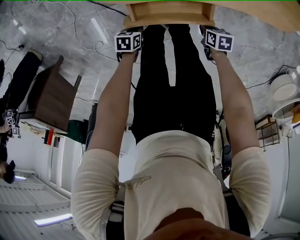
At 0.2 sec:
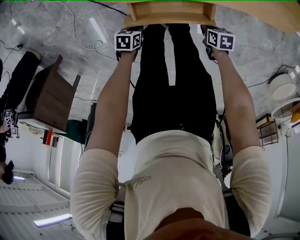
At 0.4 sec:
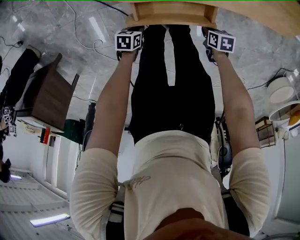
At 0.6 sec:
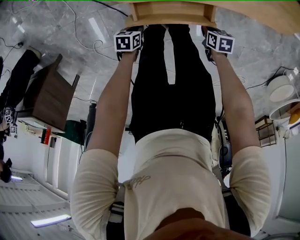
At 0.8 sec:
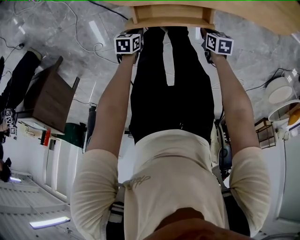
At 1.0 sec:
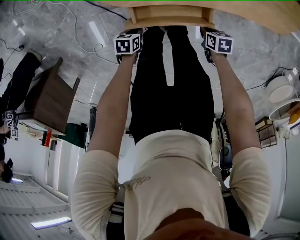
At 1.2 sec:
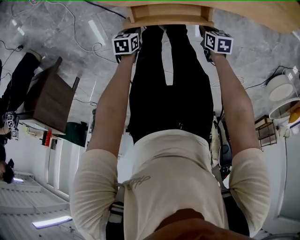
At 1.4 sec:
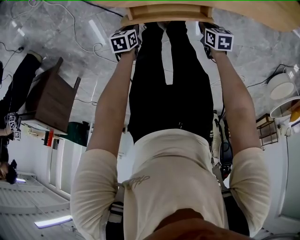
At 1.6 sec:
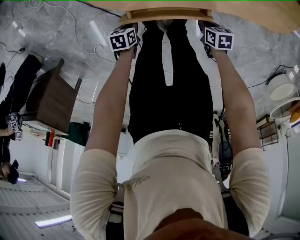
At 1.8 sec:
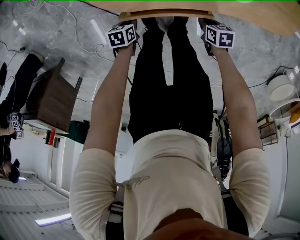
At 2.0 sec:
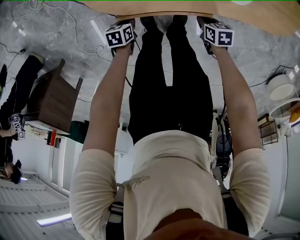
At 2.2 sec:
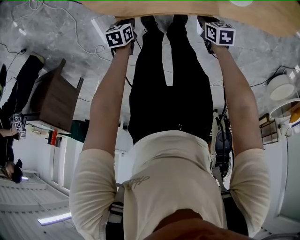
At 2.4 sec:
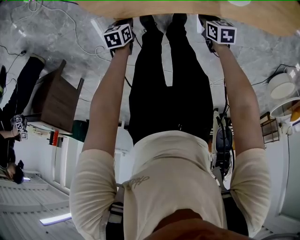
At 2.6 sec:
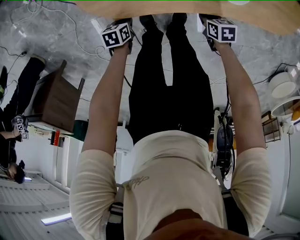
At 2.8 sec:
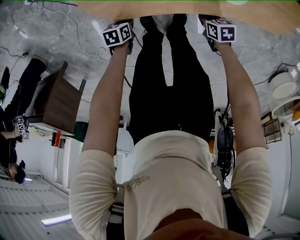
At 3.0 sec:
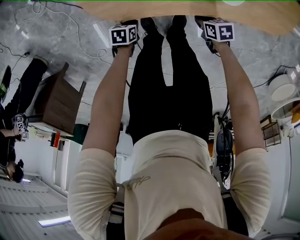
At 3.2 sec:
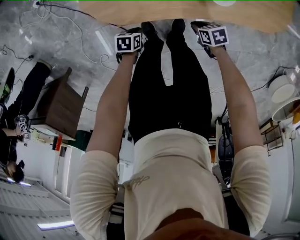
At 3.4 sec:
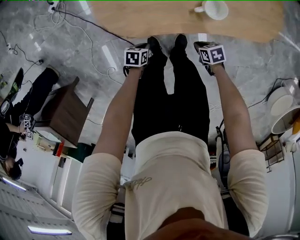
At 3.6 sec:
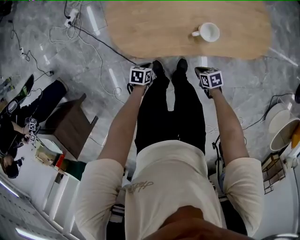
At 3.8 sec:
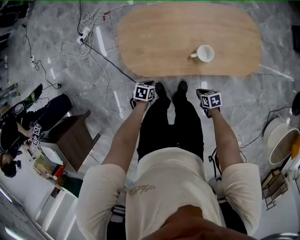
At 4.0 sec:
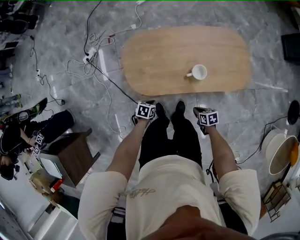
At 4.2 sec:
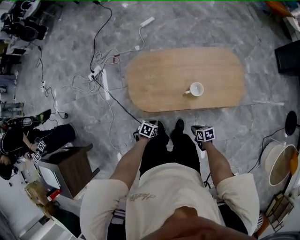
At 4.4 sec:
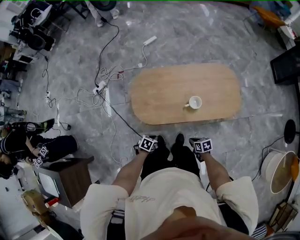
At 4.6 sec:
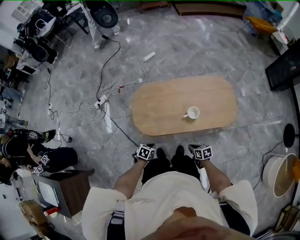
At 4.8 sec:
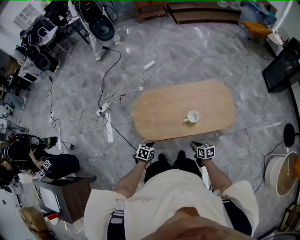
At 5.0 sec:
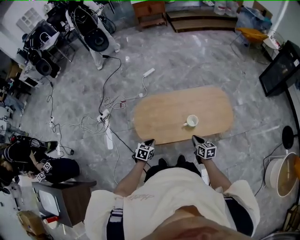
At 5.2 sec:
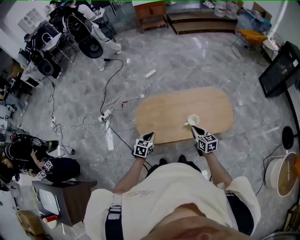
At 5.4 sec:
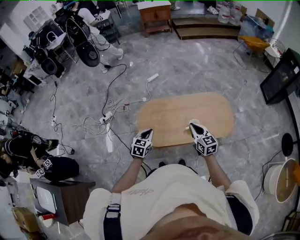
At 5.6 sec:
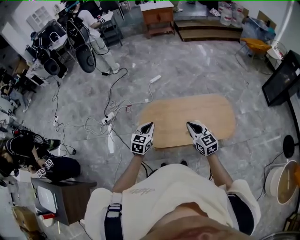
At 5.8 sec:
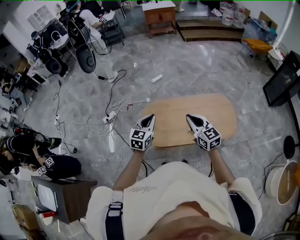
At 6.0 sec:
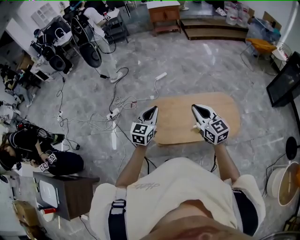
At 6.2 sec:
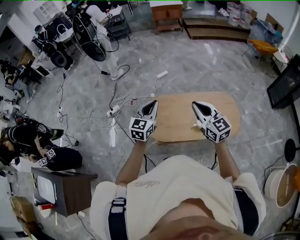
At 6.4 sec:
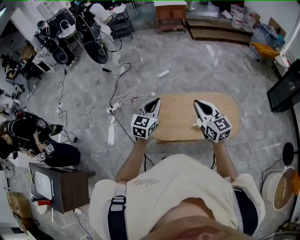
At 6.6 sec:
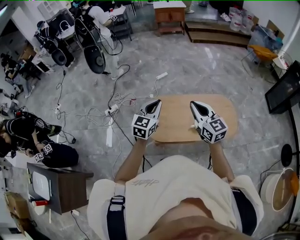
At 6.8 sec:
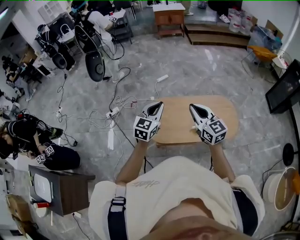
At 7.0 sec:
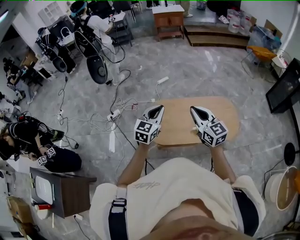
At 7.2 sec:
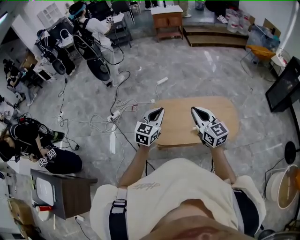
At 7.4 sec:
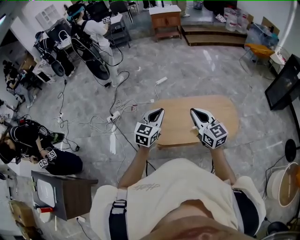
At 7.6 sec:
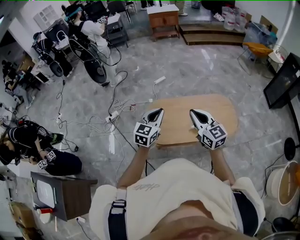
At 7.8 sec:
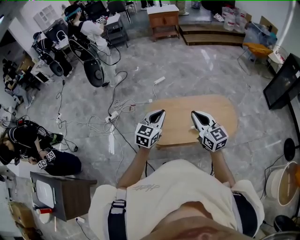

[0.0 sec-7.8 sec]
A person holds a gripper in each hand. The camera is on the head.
0.0 sec to 1.6 sec: The right gripper shifts by about 5 cm; the left gripper shifts by about 10 cm.
1.6 sec to 3.2 sec: The right gripper changes place by about 5 cm. Meanwhile the left gripper shifts by approximately 10 cm.
3.2 sec to 4.6 sec: The grippers both shift upward by roughly 35 cm. The right gripper rotates approximately 20 degrees. Meanwhile the left gripper swivels roughly 30 degrees.
4.6 sec to 6.2 sec: The grippers both shift upward by some 50 cm. The right gripper points its fingers approximately 40 degrees further upward. The left gripper tilts its fingers roughly 50 degrees upward.
6.2 sec to 7.8 sec: The two grippers go about 5 cm backward.

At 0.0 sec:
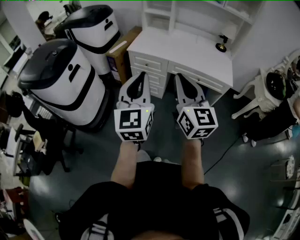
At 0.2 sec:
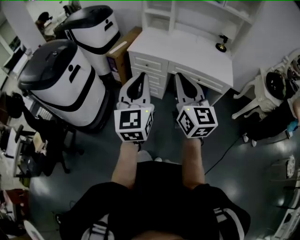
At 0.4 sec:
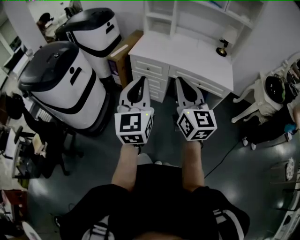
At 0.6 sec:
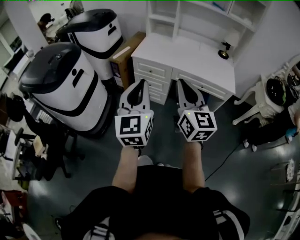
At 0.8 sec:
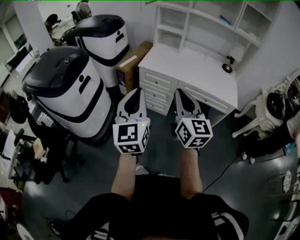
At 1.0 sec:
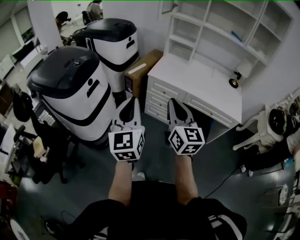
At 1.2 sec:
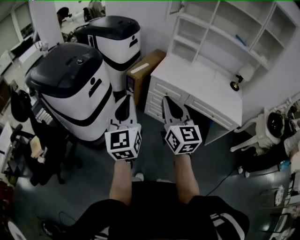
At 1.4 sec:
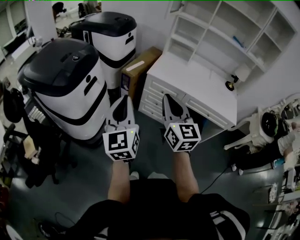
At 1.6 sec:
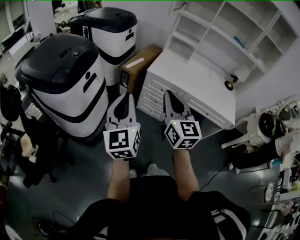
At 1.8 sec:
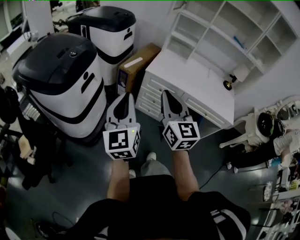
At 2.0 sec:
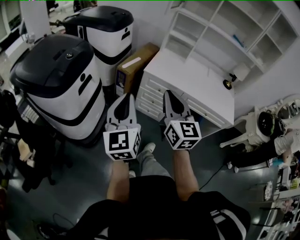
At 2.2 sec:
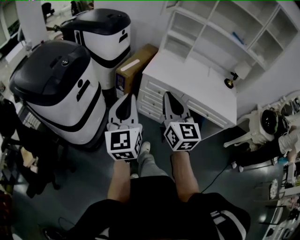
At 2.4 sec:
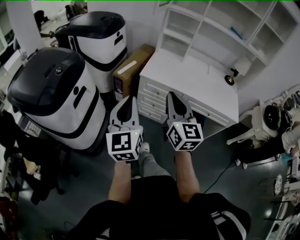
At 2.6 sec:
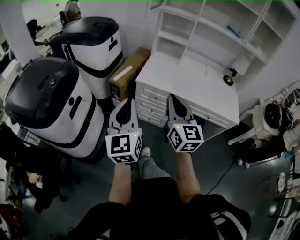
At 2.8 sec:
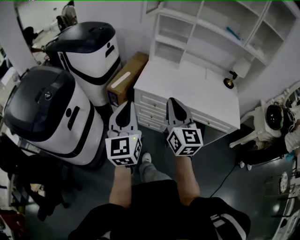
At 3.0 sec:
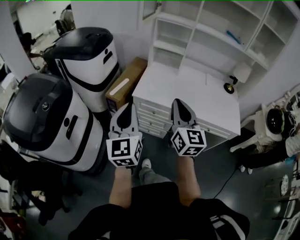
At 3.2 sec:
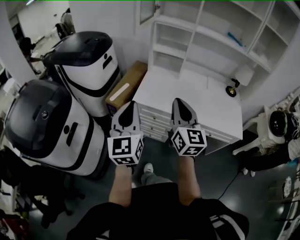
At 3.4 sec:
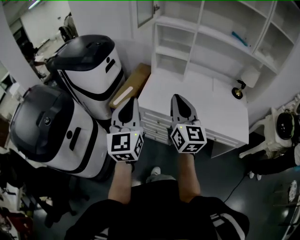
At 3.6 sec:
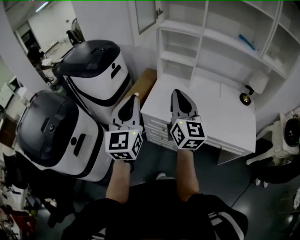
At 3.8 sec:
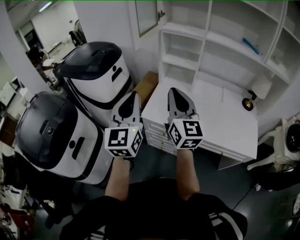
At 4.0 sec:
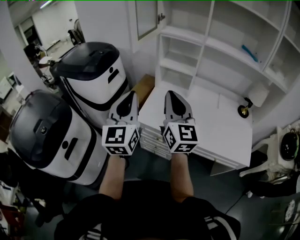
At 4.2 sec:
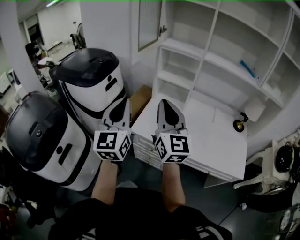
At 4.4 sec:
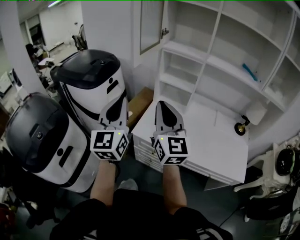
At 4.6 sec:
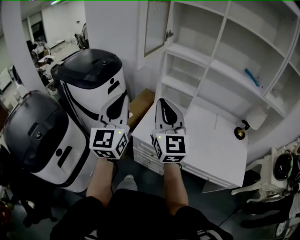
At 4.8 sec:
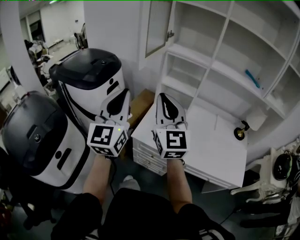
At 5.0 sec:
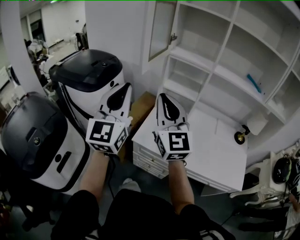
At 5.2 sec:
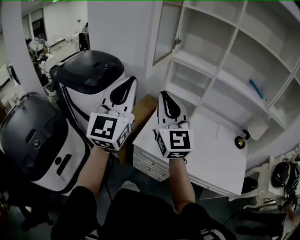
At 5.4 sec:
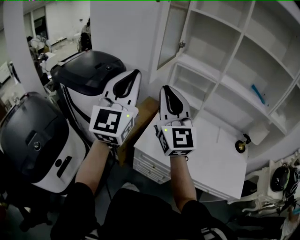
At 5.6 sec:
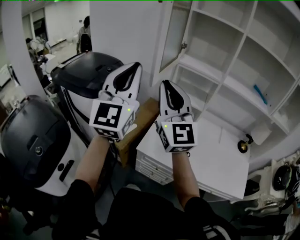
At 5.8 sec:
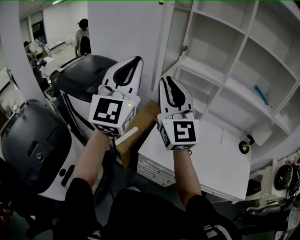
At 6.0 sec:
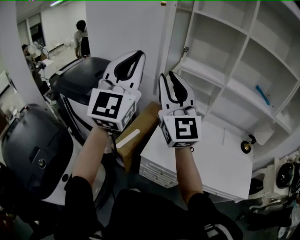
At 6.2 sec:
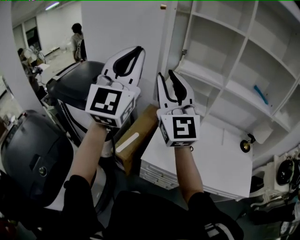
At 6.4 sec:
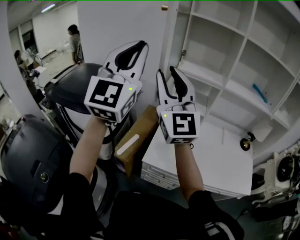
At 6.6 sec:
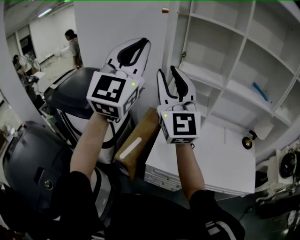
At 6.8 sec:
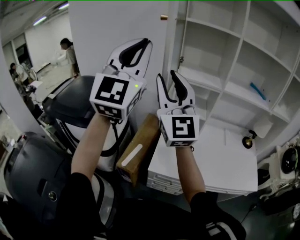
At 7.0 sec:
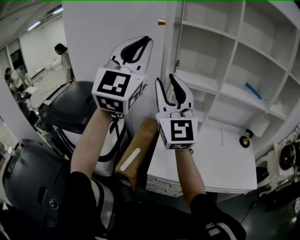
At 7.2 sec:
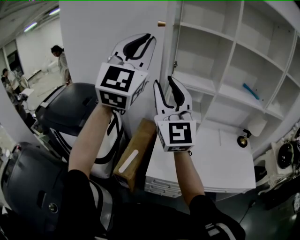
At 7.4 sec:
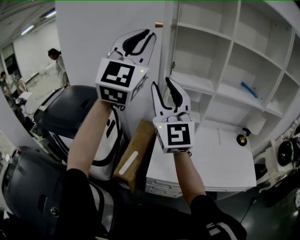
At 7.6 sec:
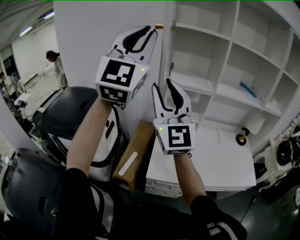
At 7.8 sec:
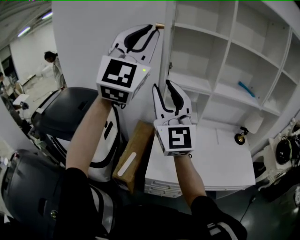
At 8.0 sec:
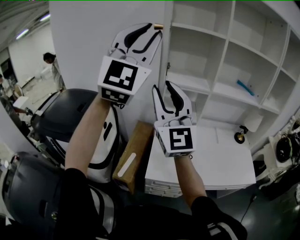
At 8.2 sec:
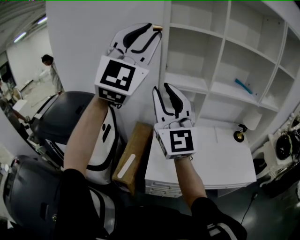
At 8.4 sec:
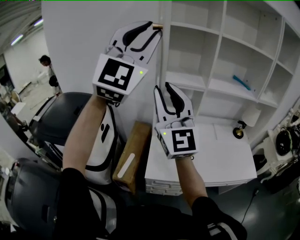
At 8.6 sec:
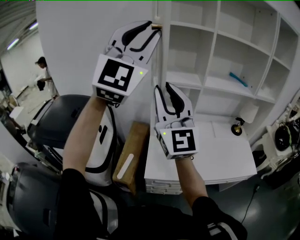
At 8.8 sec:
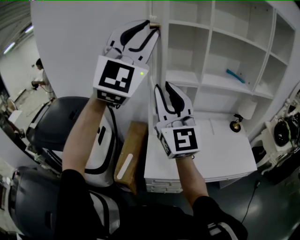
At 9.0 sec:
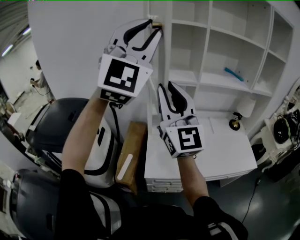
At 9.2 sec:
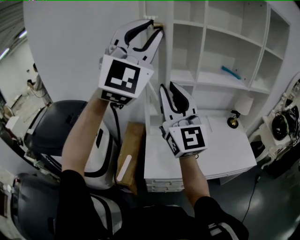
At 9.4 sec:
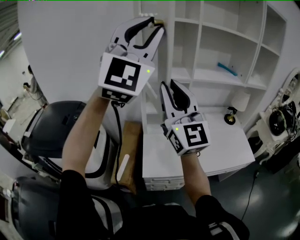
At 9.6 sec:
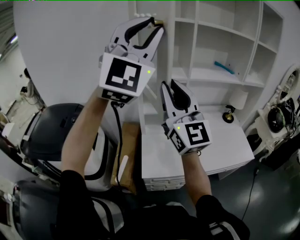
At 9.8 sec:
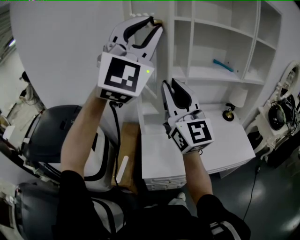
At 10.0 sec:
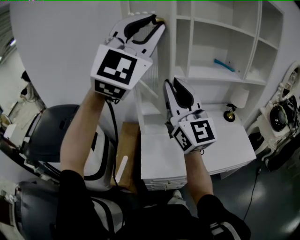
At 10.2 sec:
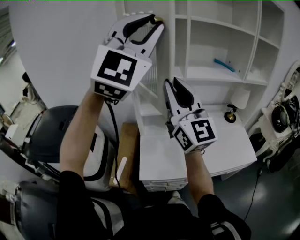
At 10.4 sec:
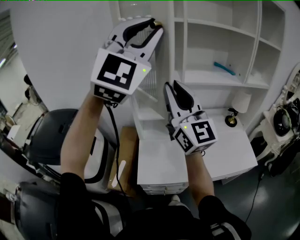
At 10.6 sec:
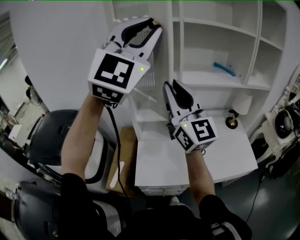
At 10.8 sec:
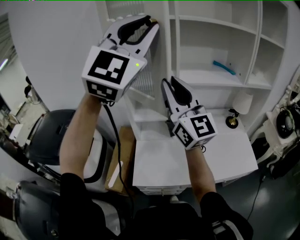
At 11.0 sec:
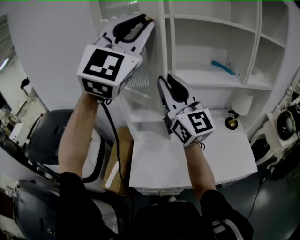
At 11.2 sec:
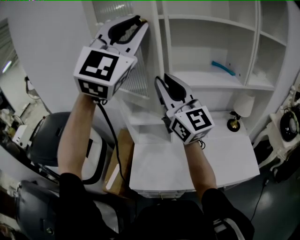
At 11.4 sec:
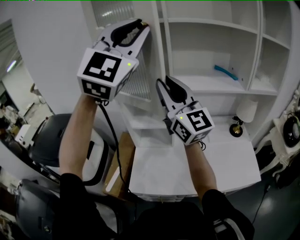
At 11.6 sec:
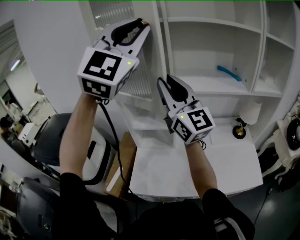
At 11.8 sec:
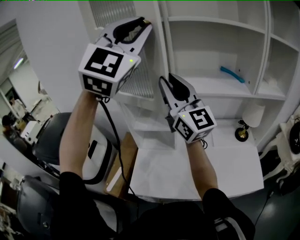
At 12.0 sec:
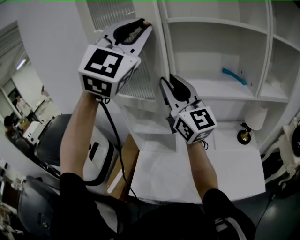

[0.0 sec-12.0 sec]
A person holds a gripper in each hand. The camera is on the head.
0.0 sec to 1.6 sec: Both grippers travel together to the left and forward, about 30 cm.
1.6 sec to 3.0 sec: The two grippers go some 25 cm forward and to the right.
3.0 sec to 4.4 sec: Both grippers travel together forward and upward, some 20 cm.
4.4 sec to 6.0 sec: The left gripper is displaced upward and forward by approximately 25 cm, and changes its angle by some 20 degrees, while the right gripper goes roughly 20 cm forward, upward and to the left, and swivels some 20 degrees.
6.0 sec to 7.6 sec: The right gripper shifts some 5 cm forward. Meanwhile the left gripper goes roughly 15 cm upward and forward.
7.6 sec to 9.0 sec: The two grippers go some 10 cm to the right.
9.0 sec to 10.4 sec: Both grippers travel together to the right and forward, approximately 10 cm.
10.4 sec to 12.0 sec: The grippers both shift forward and to the right by approximately 15 cm.

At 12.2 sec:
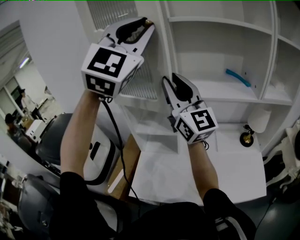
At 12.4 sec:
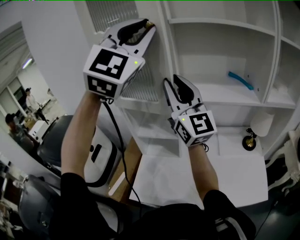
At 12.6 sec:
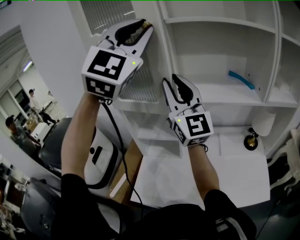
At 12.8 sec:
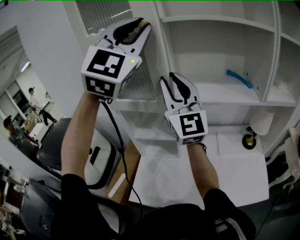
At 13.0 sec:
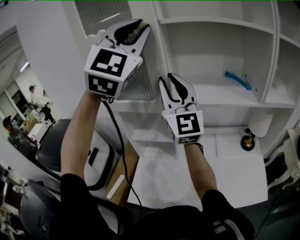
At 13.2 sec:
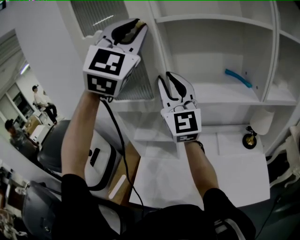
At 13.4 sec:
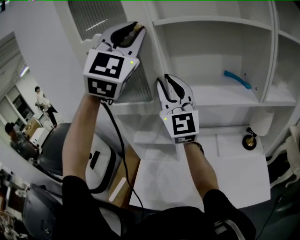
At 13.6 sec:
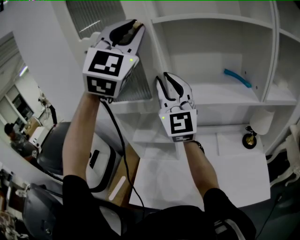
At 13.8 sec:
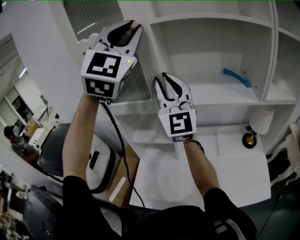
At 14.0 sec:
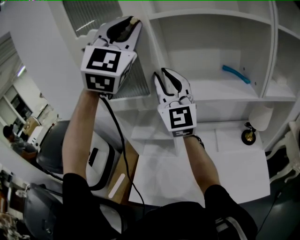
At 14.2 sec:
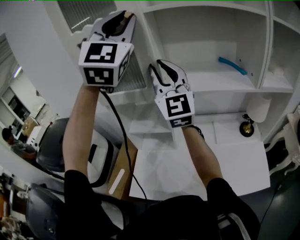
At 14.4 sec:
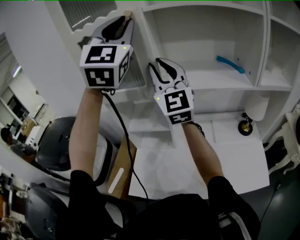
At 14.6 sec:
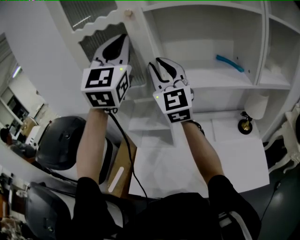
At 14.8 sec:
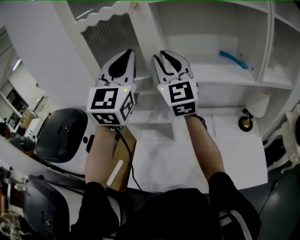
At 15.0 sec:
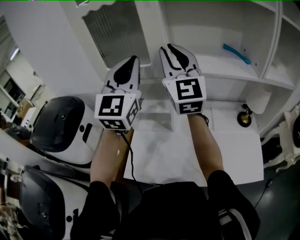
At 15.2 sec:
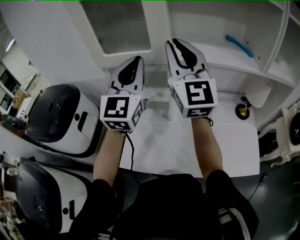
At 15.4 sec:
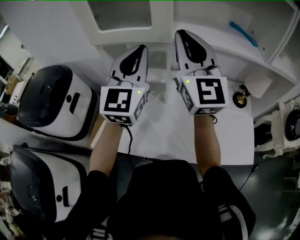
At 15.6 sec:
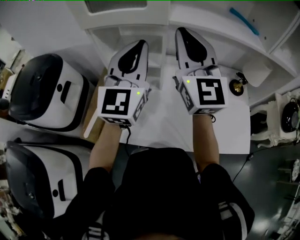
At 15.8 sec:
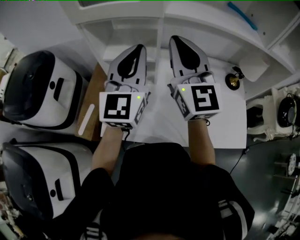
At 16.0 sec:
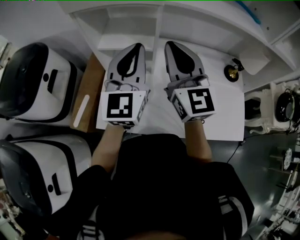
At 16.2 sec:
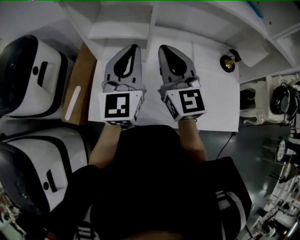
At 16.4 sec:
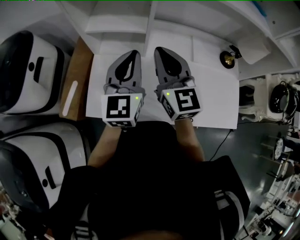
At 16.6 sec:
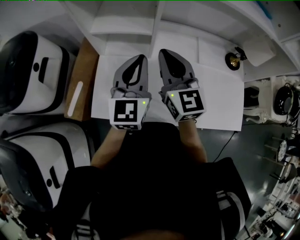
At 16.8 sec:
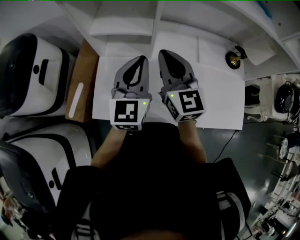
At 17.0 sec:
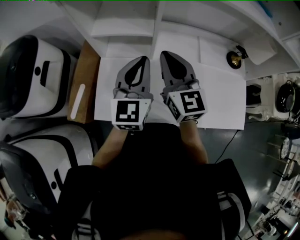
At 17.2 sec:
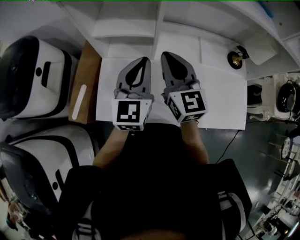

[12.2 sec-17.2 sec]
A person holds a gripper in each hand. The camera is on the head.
12.2 sec to 13.8 sec: Both grippers travel together forward, roughly 5 cm. The right gripper changes its angle by approximately 20 degrees.
13.8 sec to 15.6 sec: The left gripper is displaced downward by about 30 cm, and rotates around the line of its fingers by some 40 degrees, counterclockwise from behind; the right gripper travels downward and backward by roughly 15 cm.
15.6 sec to 17.2 sec: Both grippers travel together downward, roughly 20 cm. The right gripper swivels approximately 20 degrees, while the left gripper changes its angle by roughly 20 degrees.
